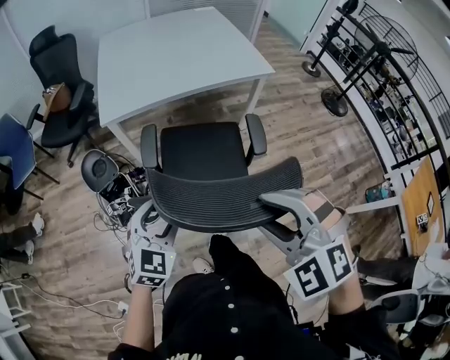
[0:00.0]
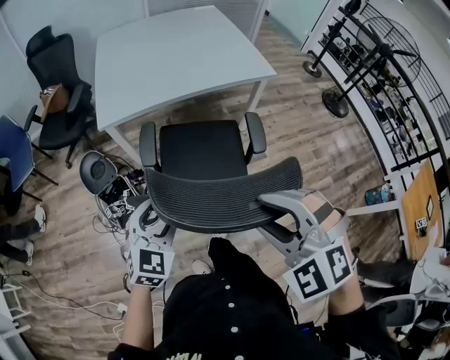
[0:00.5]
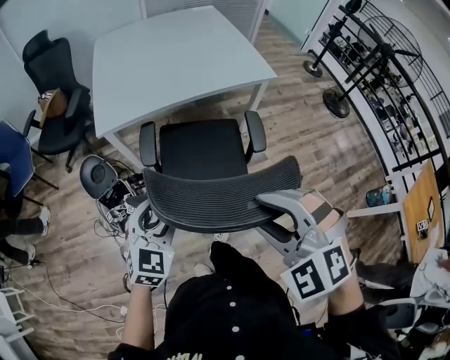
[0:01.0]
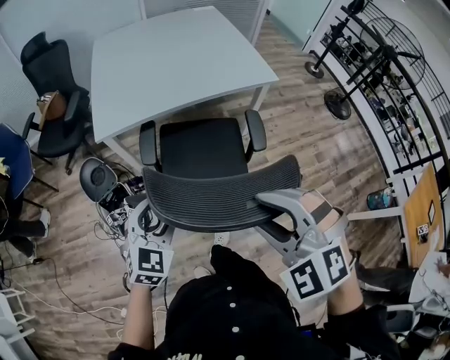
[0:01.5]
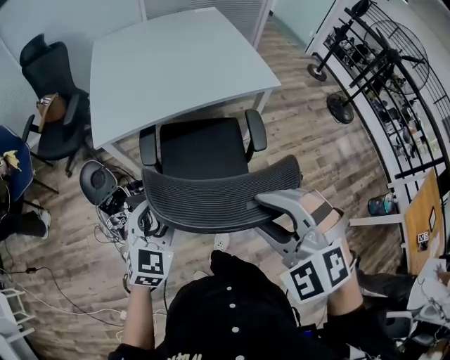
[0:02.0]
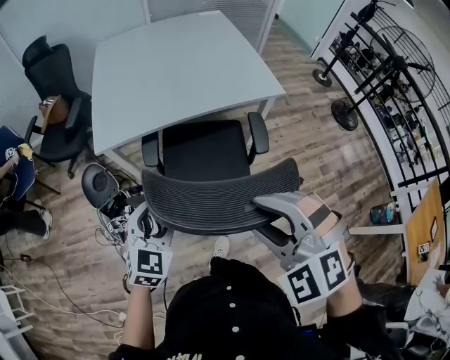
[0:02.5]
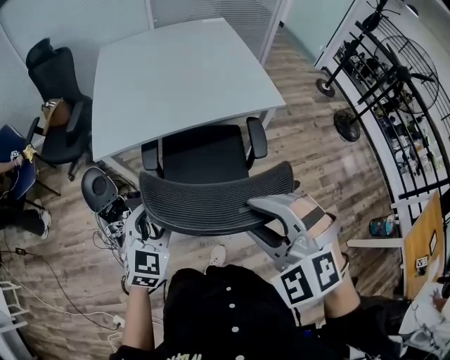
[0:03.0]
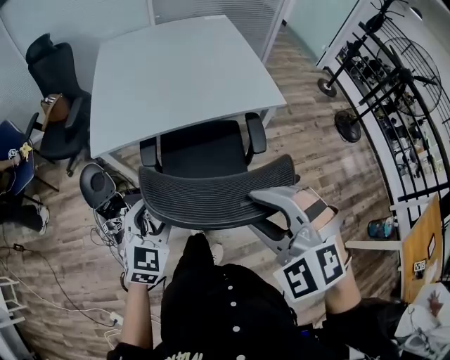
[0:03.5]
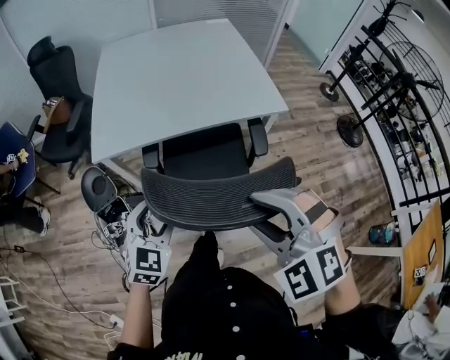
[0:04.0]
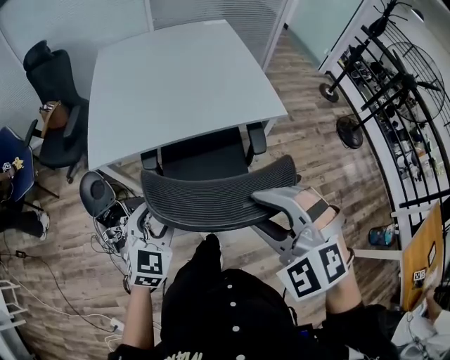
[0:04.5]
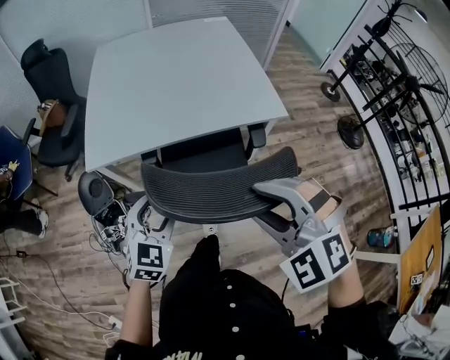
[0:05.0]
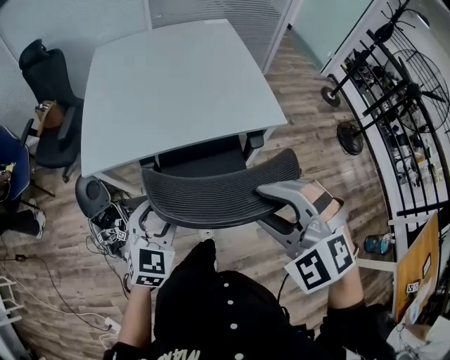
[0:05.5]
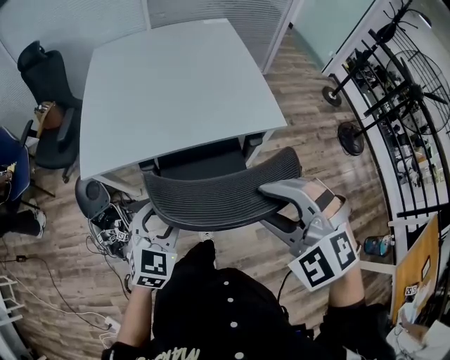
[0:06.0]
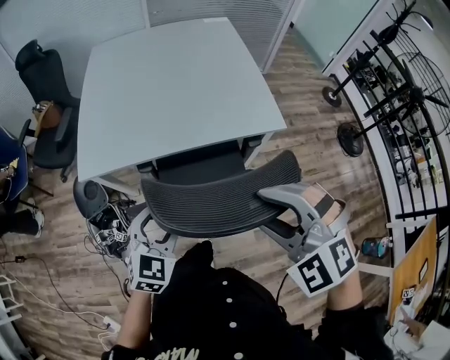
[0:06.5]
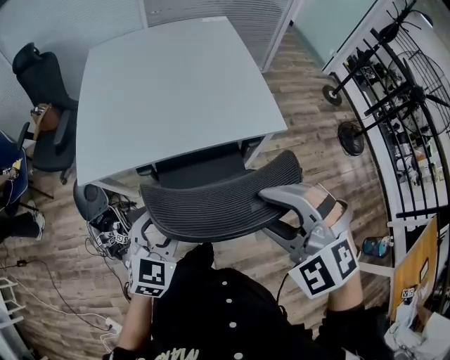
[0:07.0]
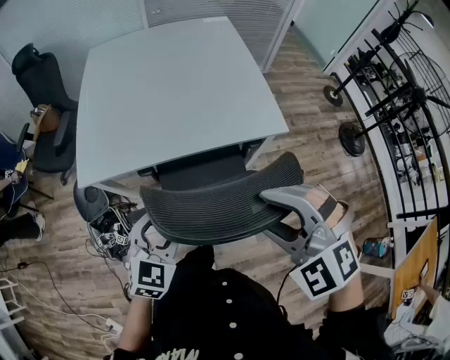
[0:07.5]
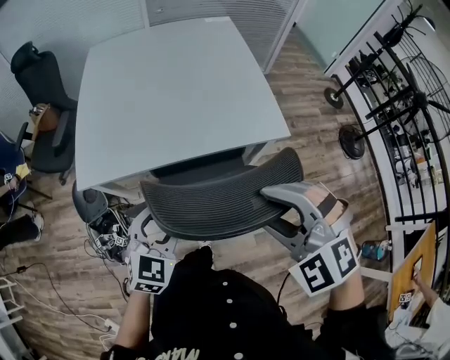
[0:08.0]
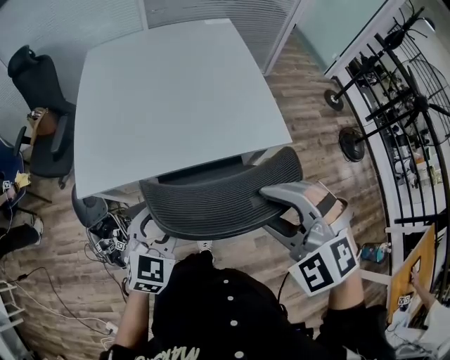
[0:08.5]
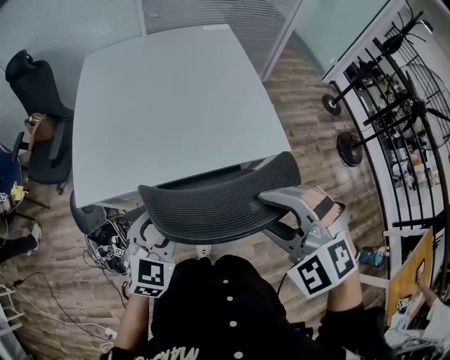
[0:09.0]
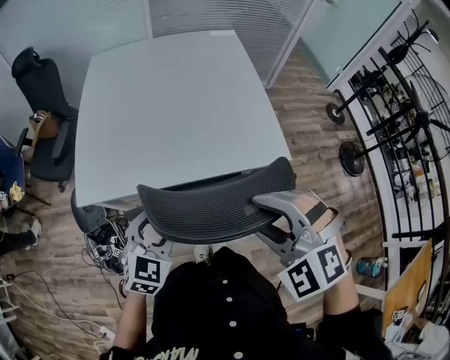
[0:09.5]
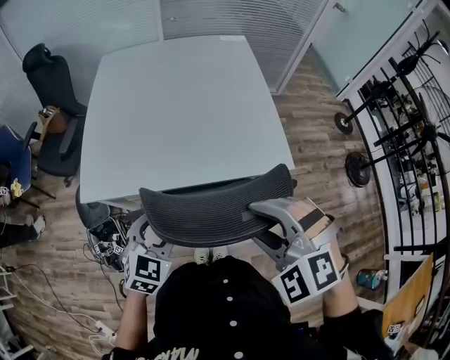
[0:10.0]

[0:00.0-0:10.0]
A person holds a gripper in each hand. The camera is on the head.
0:00.0 to 0:02.0: Both grippers move forward, about 10 cm.
0:02.0 to 0:04.0: The left gripper is displaced forward by some 10 cm. The right gripper is displaced forward and to the right by approximately 10 cm.
0:04.0 to 0:06.0: The grippers both shift forward and to the right by roughly 10 cm.
0:06.0 to 0:08.0: The right gripper is displaced forward by about 5 cm.
0:08.0 to 0:10.0: Both grippers travel together forward, approximately 5 cm.

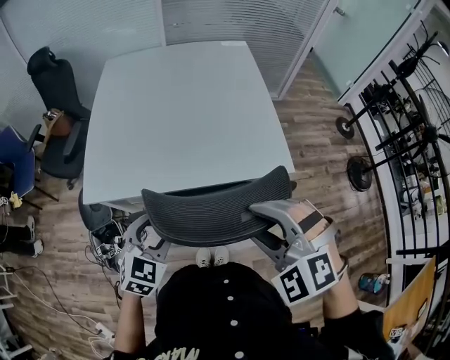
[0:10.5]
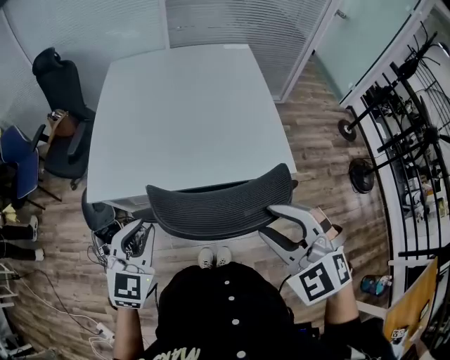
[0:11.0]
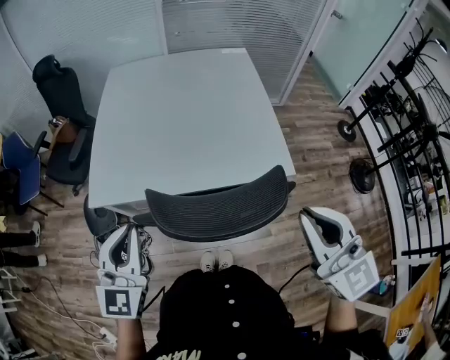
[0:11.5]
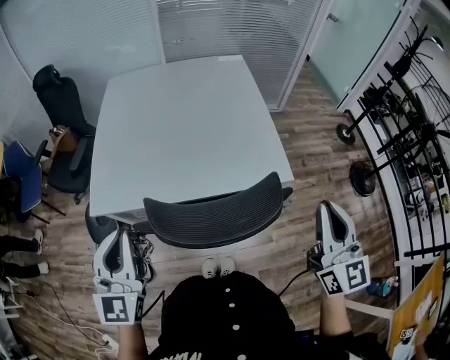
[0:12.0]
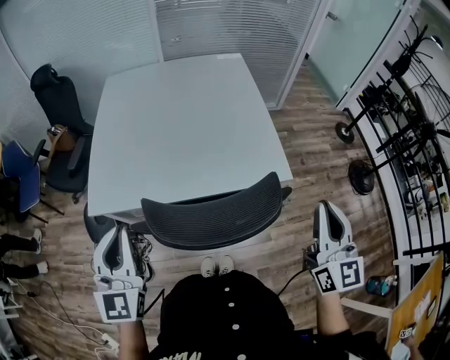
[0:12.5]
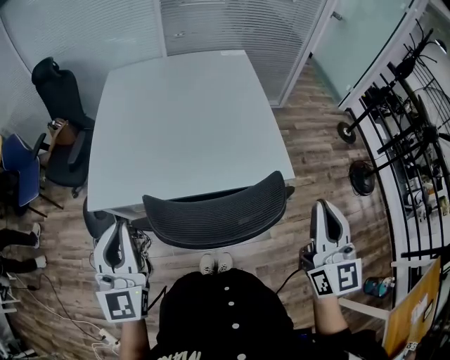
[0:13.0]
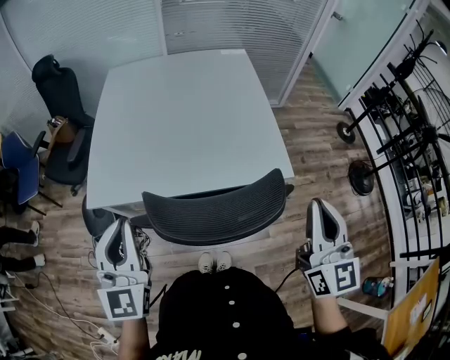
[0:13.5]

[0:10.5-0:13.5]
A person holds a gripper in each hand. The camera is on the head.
0:10.5 to 0:12.0: The right gripper travels to the right by approximately 15 cm, tips its fingers upward by approximately 40 degrees, and closes its fingers. The left gripper is displaced upward and to the left by about 15 cm, tilts its fingers approximately 30 degrees upward, and closes its fingers.
0:12.0 to 0:13.5: The grippers move only a little.

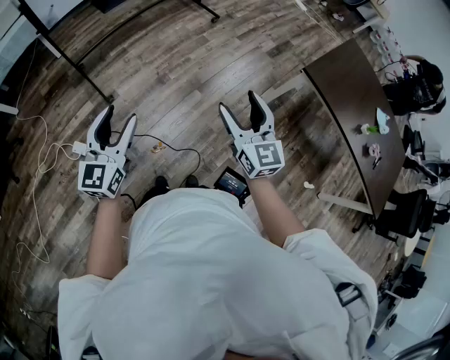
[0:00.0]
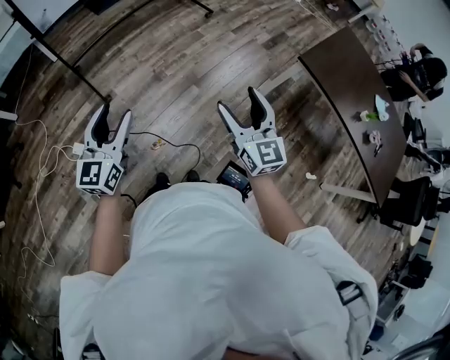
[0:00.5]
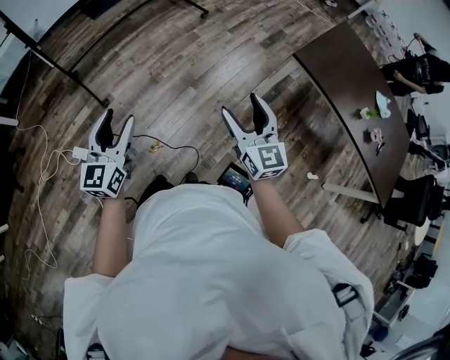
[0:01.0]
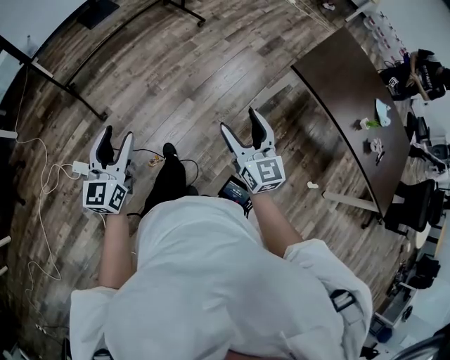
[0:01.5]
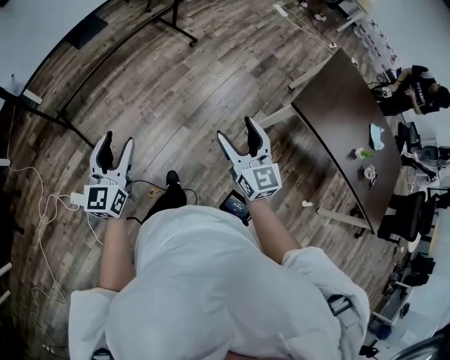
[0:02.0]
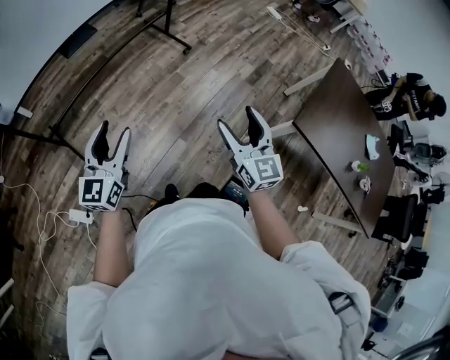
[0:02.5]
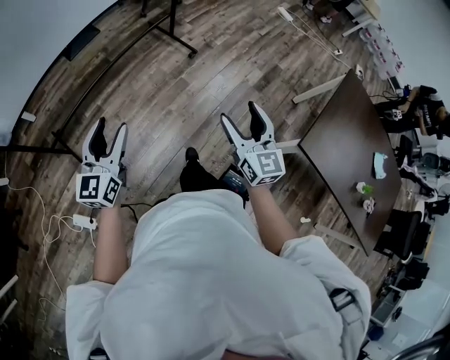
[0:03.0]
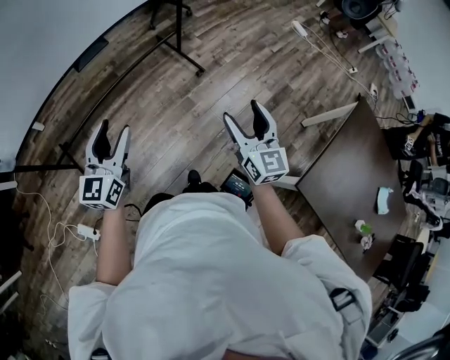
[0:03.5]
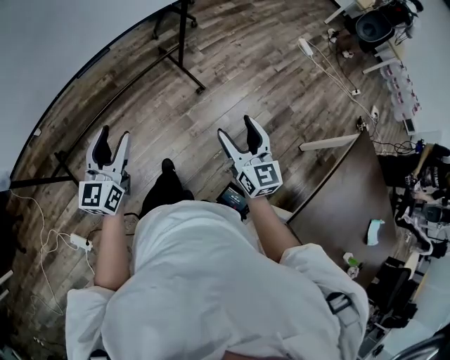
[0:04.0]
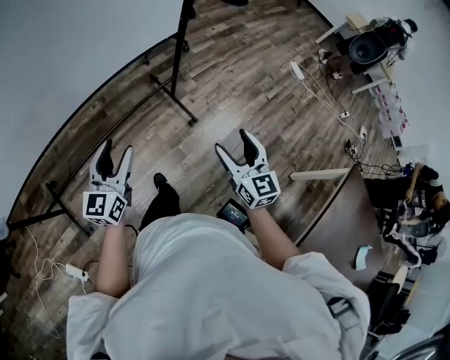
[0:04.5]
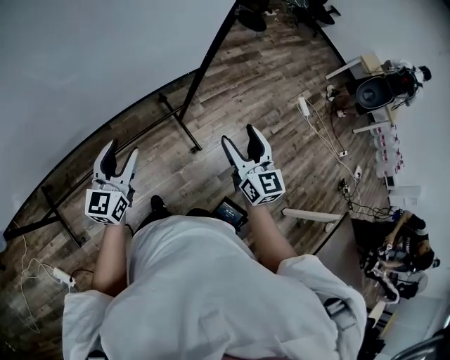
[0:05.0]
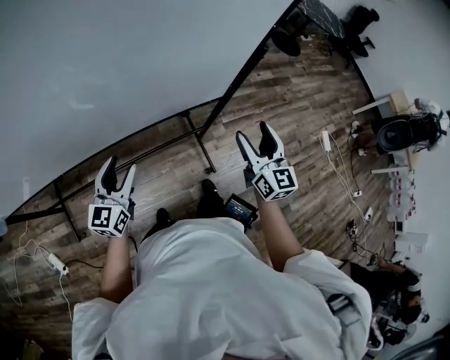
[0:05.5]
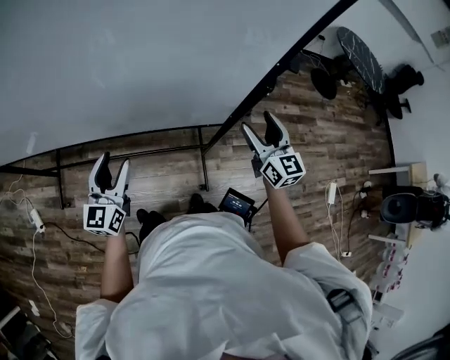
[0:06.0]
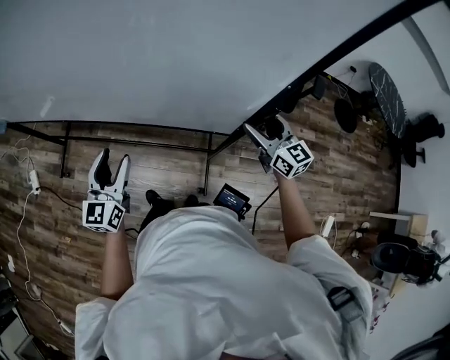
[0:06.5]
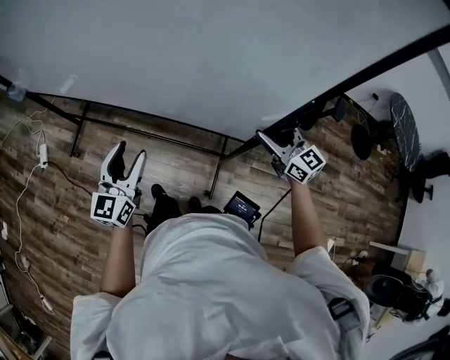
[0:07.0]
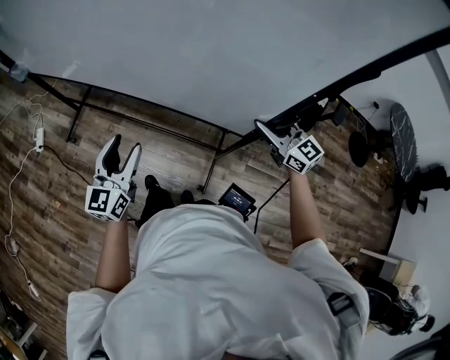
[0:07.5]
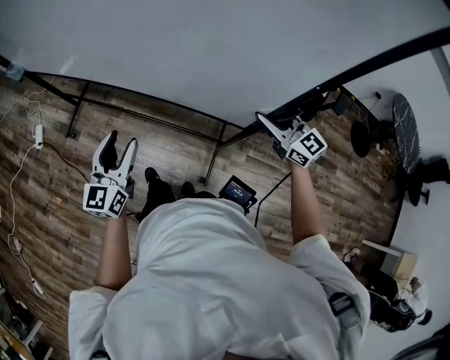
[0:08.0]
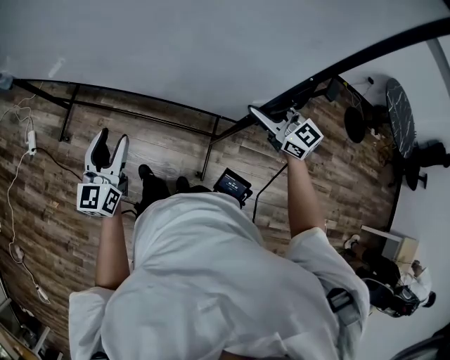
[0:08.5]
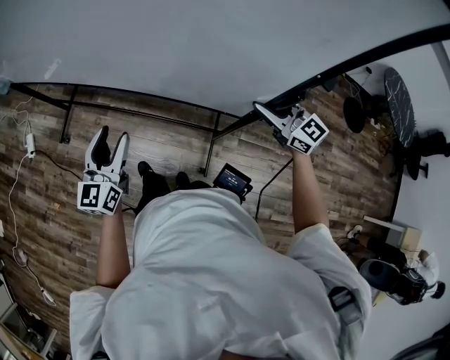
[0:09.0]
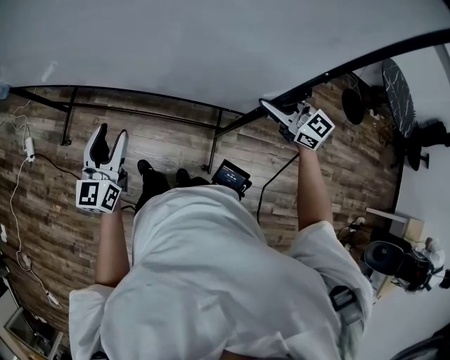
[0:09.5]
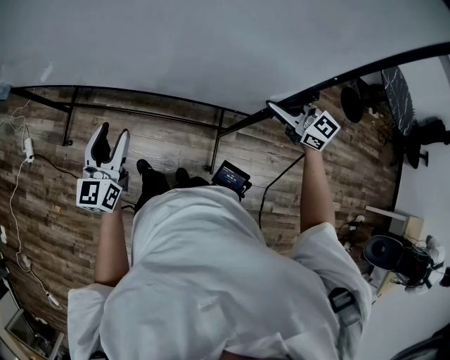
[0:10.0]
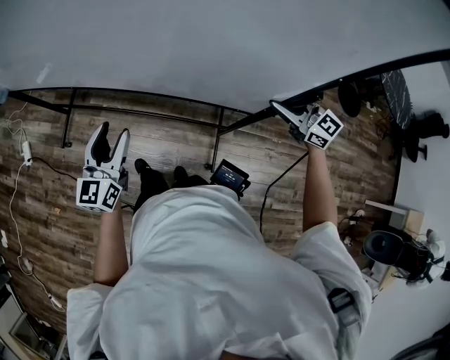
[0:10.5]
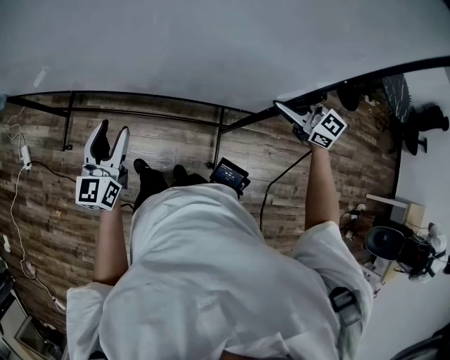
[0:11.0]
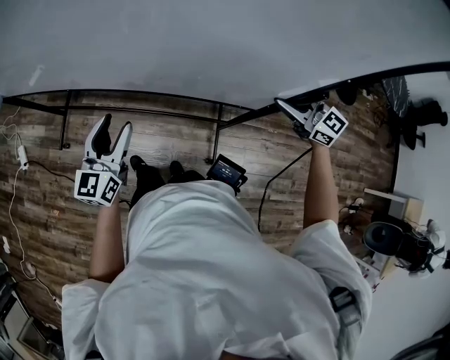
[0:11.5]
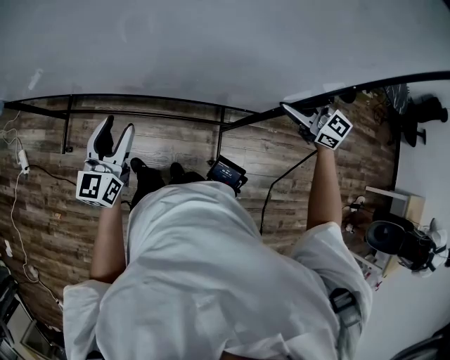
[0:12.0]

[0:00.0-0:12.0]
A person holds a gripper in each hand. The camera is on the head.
0:00.0 to 0:02.0: Both grippers move forward, roughly 25 cm.
0:02.0 to 0:04.0: The two grippers travel together, forward, some 60 cm.
0:04.0 to 0:06.0: Both grippers are carried about 60 cm. The right gripper rotates approximately 40 degrees. Meanwhile the left gripper swivels roughly 40 degrees.
0:06.0 to 0:08.0: The left gripper shifts by about 10 cm, and swivels approximately 20 degrees; the right gripper changes place by approximately 5 cm, swivels approximately 50 degrees, and closes its fingers.
0:08.0 to 0:10.0: The right gripper travels to the right and backward by about 10 cm.
0:10.0 to 0:12.0: Both grippers move to the right, about 5 cm.

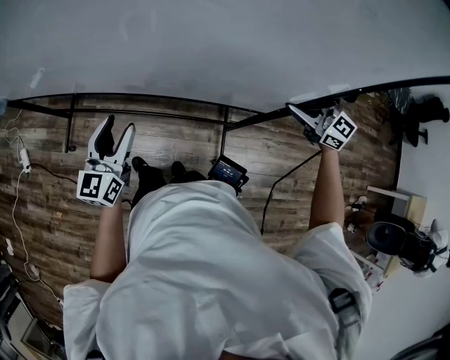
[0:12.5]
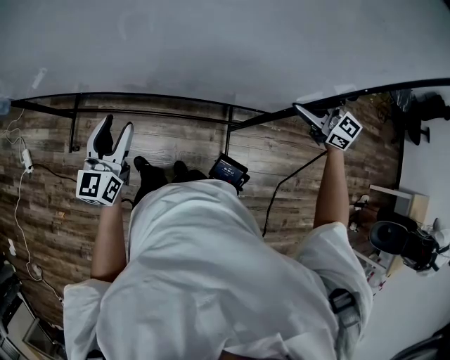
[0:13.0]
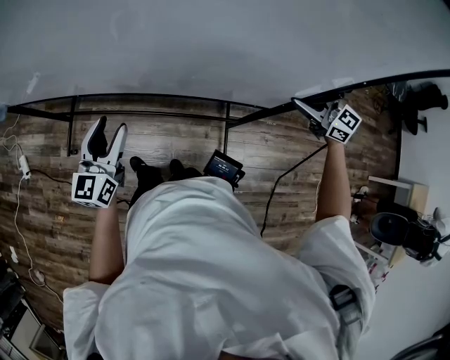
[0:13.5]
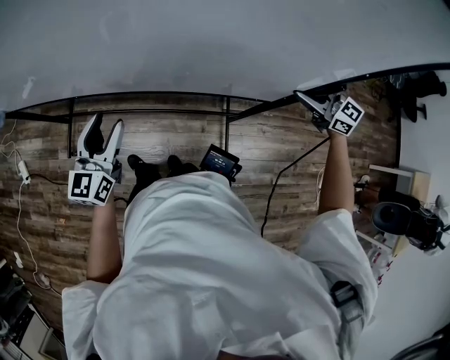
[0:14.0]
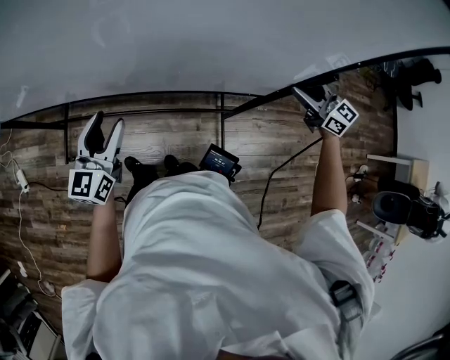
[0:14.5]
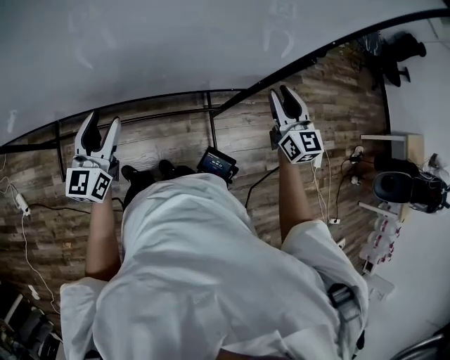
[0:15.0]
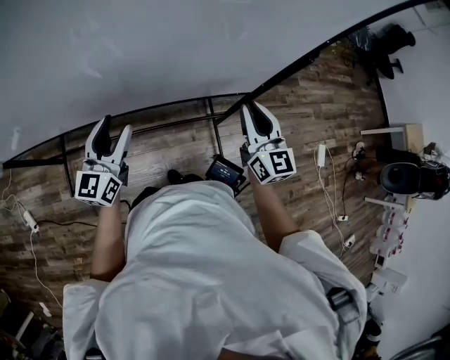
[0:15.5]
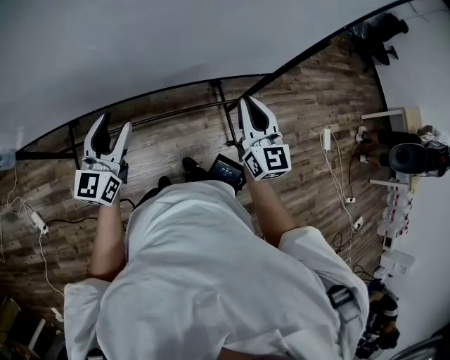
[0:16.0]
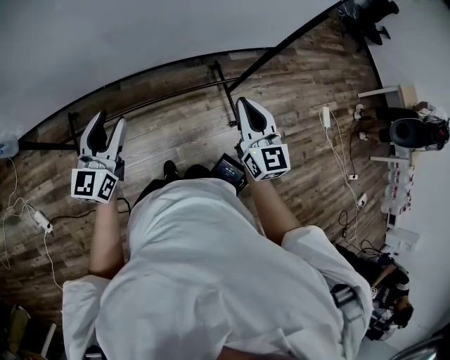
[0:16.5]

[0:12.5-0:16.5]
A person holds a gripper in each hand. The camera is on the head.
0:12.5 to 0:14.5: The left gripper goes approximately 5 cm to the right. The right gripper moves to the right, some 10 cm.
0:14.5 to 0:16.5: The right gripper shifts by some 40 cm, rotates roughly 50 degrees, and closes its fingers. Meanwhile the left gripper shifts by roughly 20 cm.
